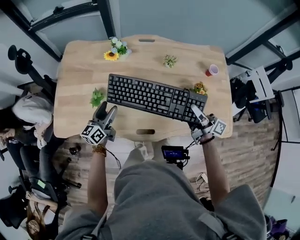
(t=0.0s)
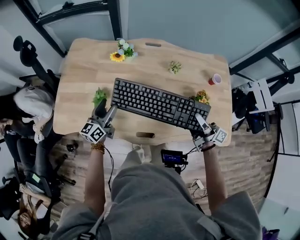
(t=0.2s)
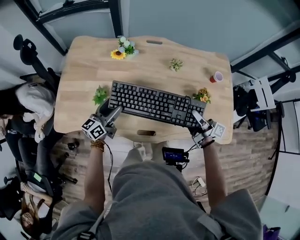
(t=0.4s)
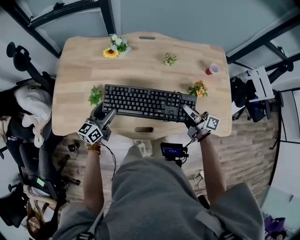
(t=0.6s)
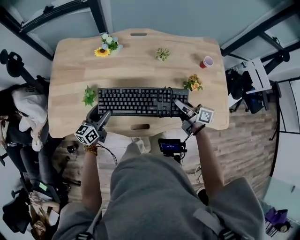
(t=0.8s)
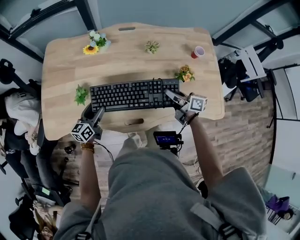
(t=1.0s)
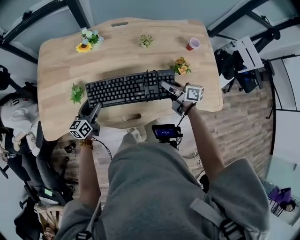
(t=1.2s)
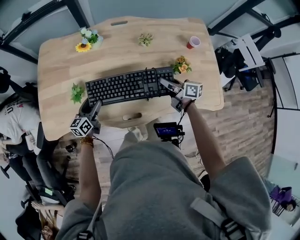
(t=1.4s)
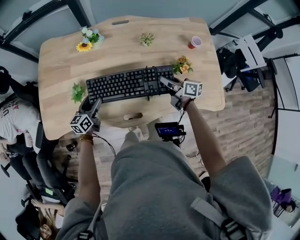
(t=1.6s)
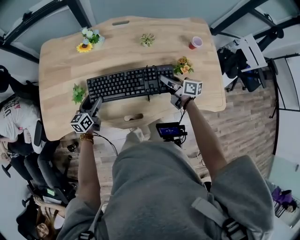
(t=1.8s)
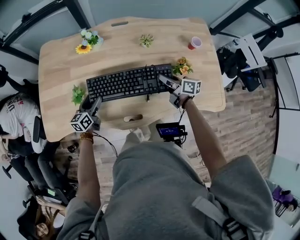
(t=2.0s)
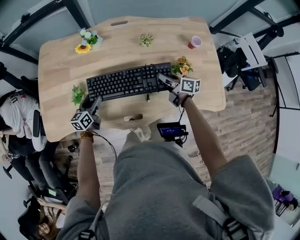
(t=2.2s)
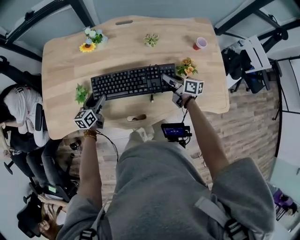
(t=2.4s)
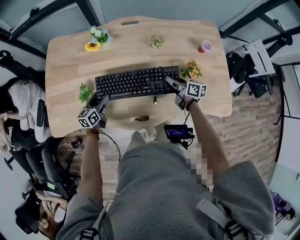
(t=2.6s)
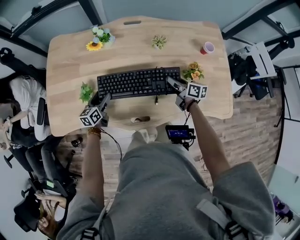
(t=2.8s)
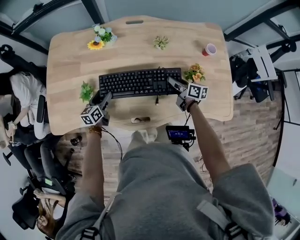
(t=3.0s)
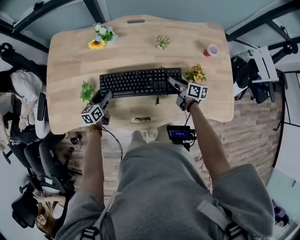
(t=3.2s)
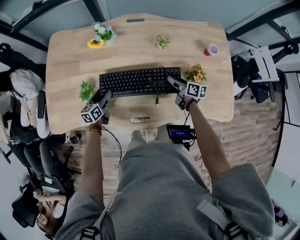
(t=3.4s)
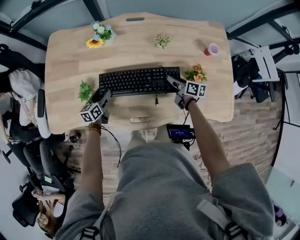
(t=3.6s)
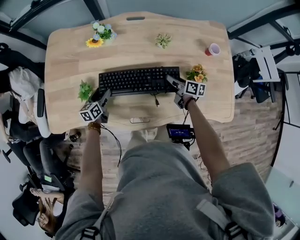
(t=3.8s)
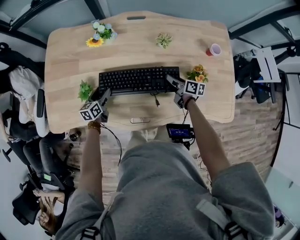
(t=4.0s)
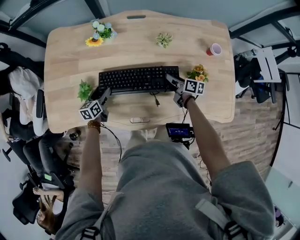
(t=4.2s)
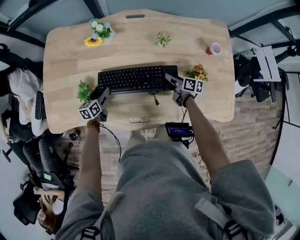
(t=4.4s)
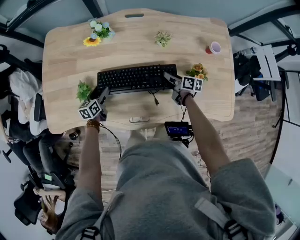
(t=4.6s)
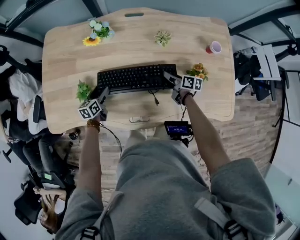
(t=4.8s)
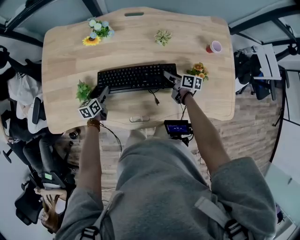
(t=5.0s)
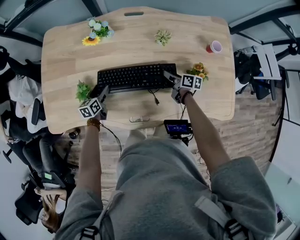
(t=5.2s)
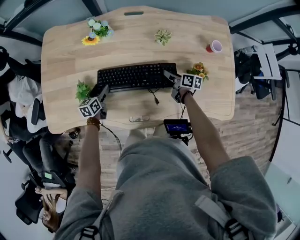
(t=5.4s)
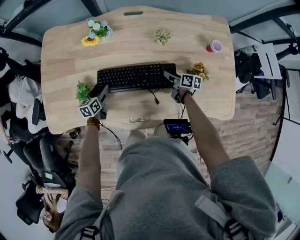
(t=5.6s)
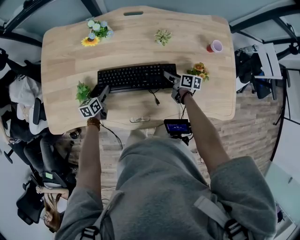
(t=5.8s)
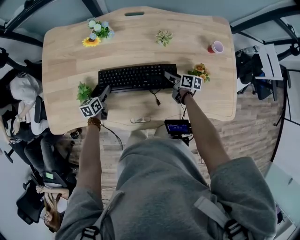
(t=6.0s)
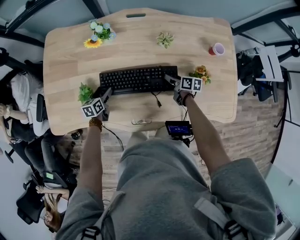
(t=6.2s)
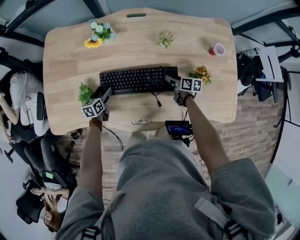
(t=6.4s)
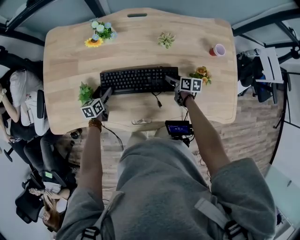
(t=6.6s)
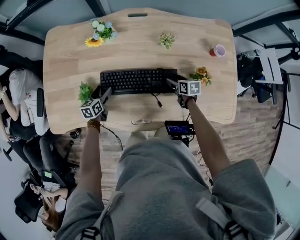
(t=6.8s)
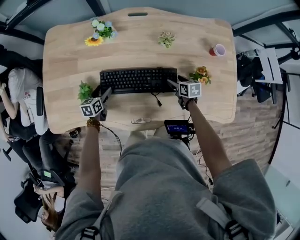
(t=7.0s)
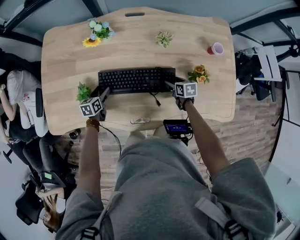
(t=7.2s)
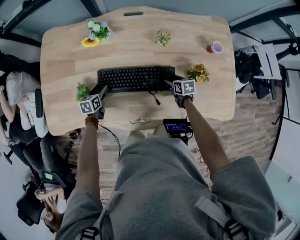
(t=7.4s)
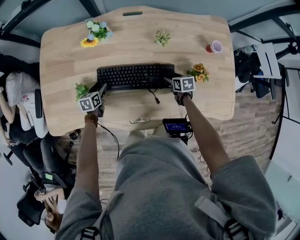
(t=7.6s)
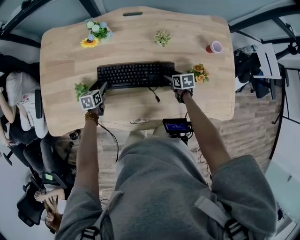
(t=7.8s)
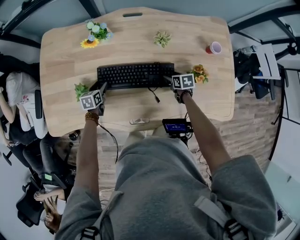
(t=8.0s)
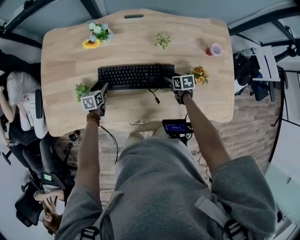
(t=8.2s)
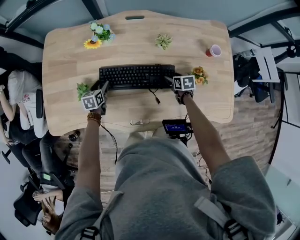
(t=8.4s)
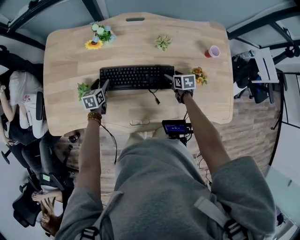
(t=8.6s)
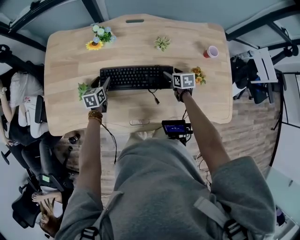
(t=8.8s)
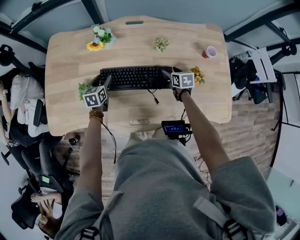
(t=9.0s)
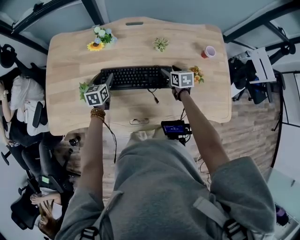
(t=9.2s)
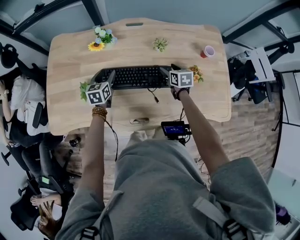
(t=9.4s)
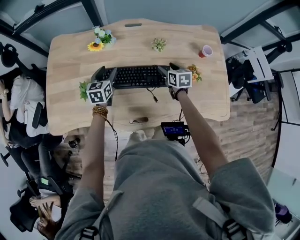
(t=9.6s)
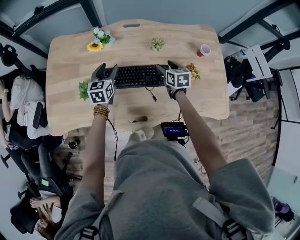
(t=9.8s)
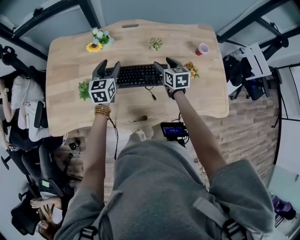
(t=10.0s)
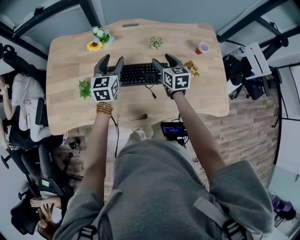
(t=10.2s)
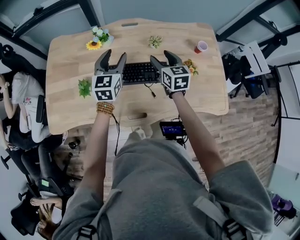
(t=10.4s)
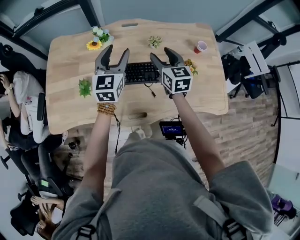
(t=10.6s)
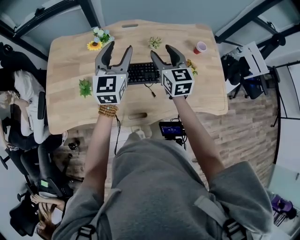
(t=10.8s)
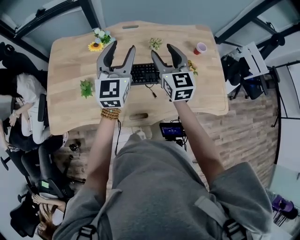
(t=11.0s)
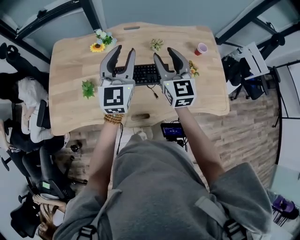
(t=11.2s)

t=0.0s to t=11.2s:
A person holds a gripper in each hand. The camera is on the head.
t=0.0s to t=1.6s: The right gripper moves downward and forward, about 15 cm, and changes its angle by roughly 30 degrees. Meanwhile the left gripper heads downward, covering roughly 10 cm.
t=1.6s to t=3.2s: The right gripper travels downward by roughly 5 cm; the left gripper shifts by some 5 cm.
t=3.2s to t=4.8s: The right gripper heads downward, covering about 5 cm.
t=4.8s to t=6.4s: The grippers move only a little.
t=6.4s to t=8.0s: The right gripper swivels approximately 30 degrees.
t=8.0s to t=9.6s: The right gripper is displaced upward by roughly 15 cm, and swivels some 20 degrees. Meanwhile the left gripper shifts roughly 20 cm upward and to the right, and turns by some 20 degrees.
t=9.6s to t=11.2s: The grippers both shift upward by roughly 25 cm. The right gripper tilts its fingers roughly 40 degrees upward, while the left gripper angles its fingers upward, by some 30 degrees.

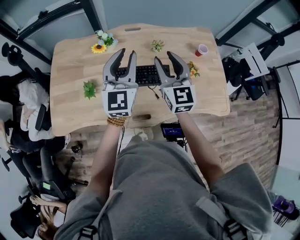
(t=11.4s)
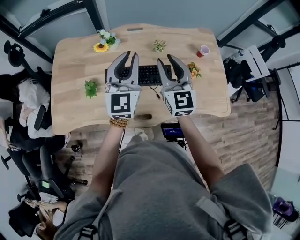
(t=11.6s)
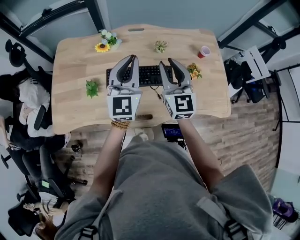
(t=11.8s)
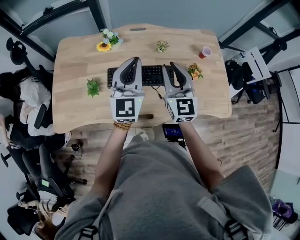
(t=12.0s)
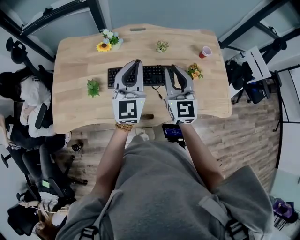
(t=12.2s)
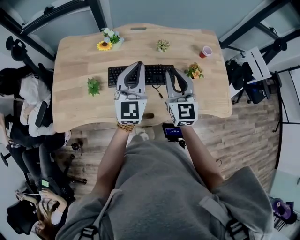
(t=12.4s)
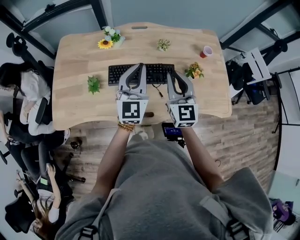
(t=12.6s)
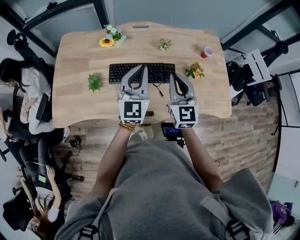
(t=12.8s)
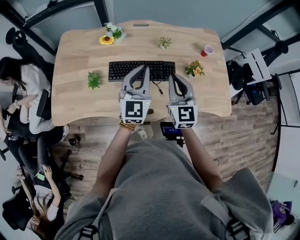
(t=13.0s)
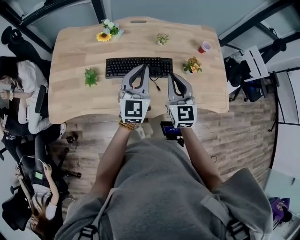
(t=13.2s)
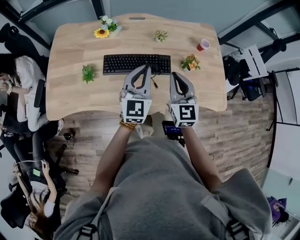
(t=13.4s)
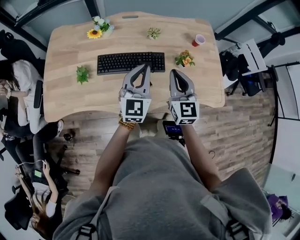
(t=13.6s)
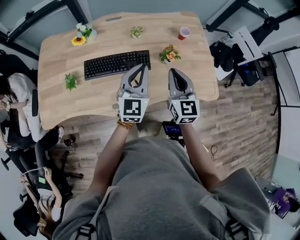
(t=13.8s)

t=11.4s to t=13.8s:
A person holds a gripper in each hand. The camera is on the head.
t=11.4s to t=12.6s: The right gripper moves backward, about 5 cm, and closes its fingers. The left gripper is displaced downward by about 5 cm.
t=12.6s to t=13.8s: Both grippers move to the right, some 15 cm.

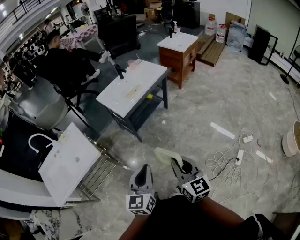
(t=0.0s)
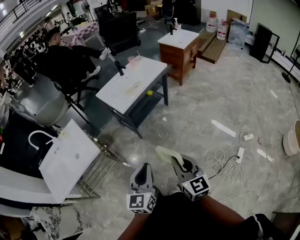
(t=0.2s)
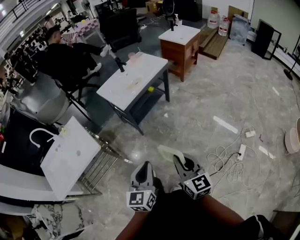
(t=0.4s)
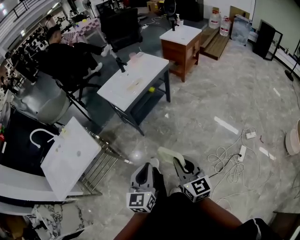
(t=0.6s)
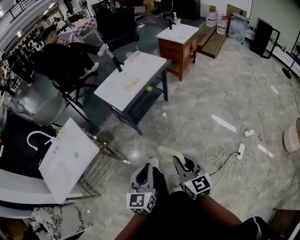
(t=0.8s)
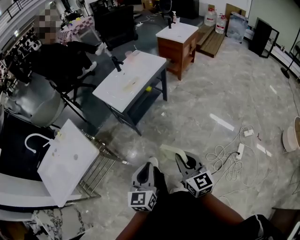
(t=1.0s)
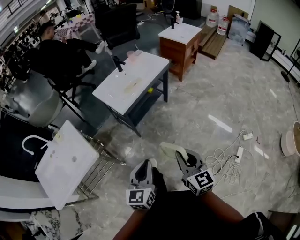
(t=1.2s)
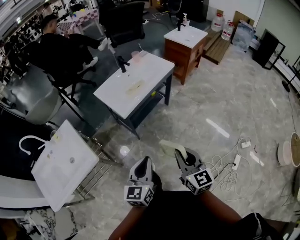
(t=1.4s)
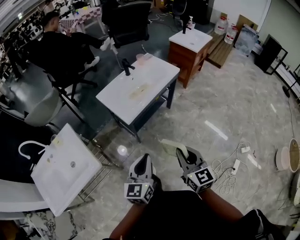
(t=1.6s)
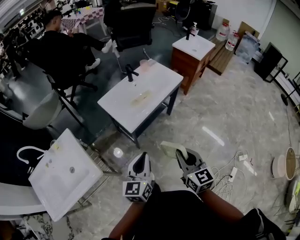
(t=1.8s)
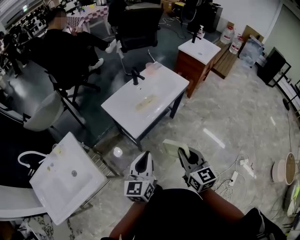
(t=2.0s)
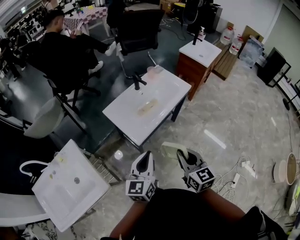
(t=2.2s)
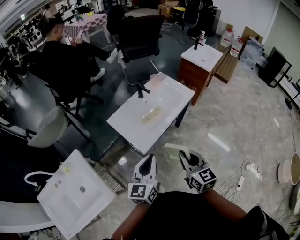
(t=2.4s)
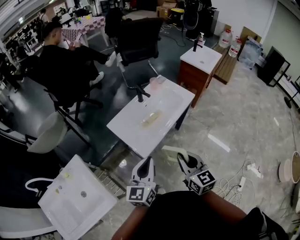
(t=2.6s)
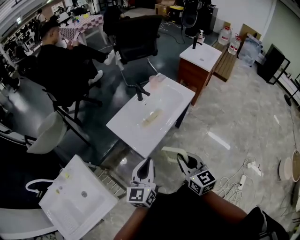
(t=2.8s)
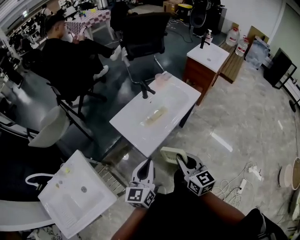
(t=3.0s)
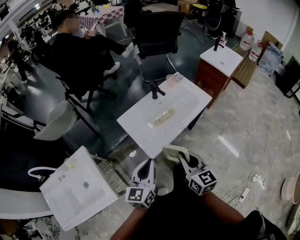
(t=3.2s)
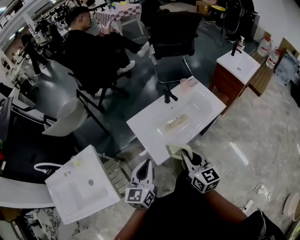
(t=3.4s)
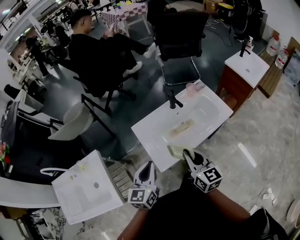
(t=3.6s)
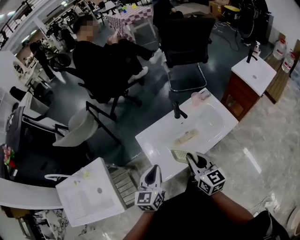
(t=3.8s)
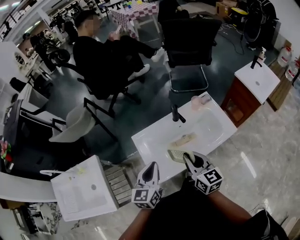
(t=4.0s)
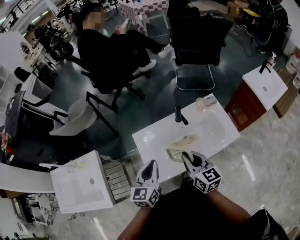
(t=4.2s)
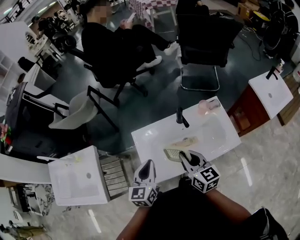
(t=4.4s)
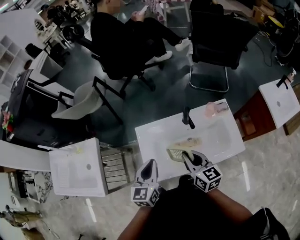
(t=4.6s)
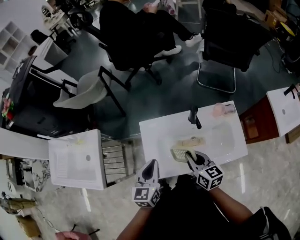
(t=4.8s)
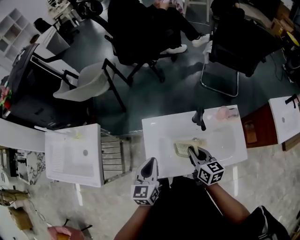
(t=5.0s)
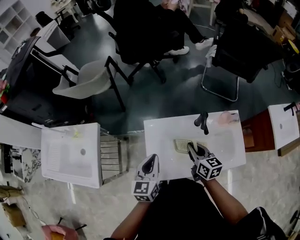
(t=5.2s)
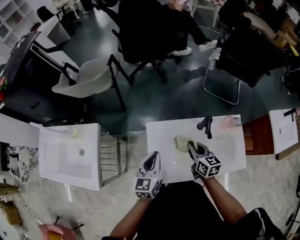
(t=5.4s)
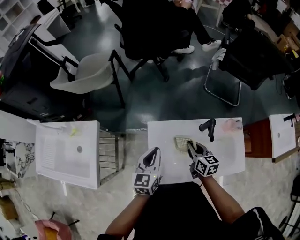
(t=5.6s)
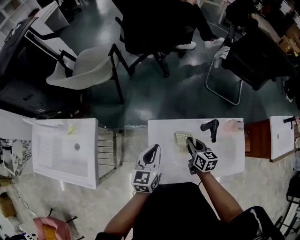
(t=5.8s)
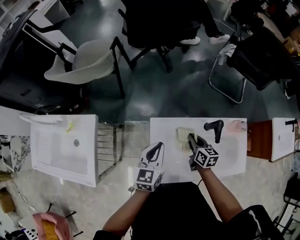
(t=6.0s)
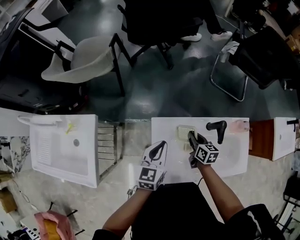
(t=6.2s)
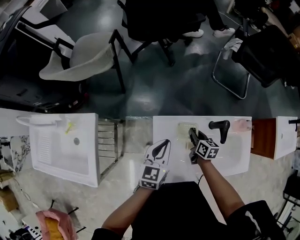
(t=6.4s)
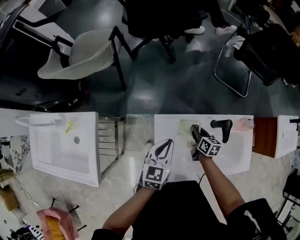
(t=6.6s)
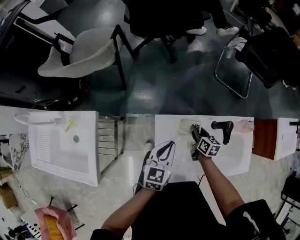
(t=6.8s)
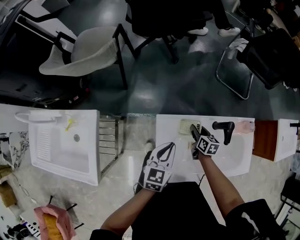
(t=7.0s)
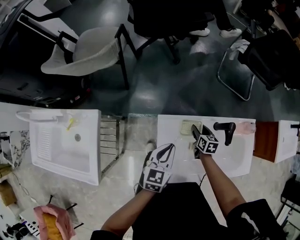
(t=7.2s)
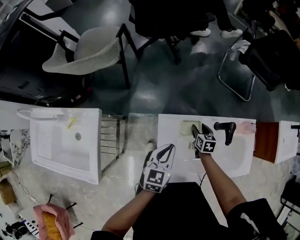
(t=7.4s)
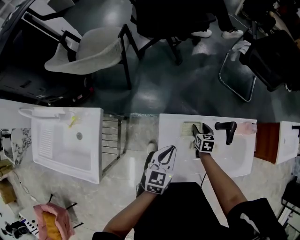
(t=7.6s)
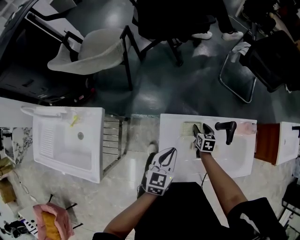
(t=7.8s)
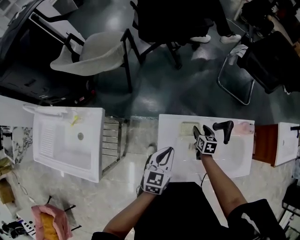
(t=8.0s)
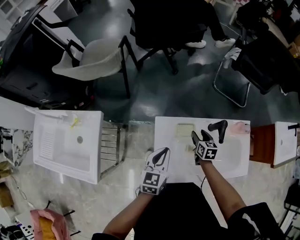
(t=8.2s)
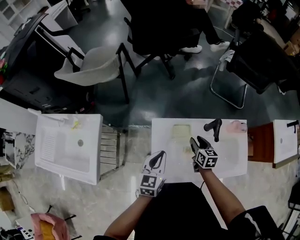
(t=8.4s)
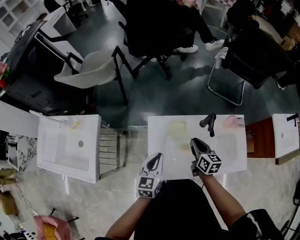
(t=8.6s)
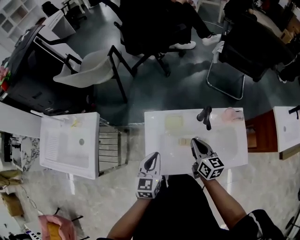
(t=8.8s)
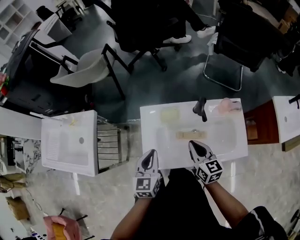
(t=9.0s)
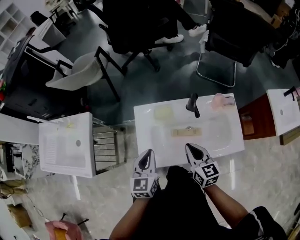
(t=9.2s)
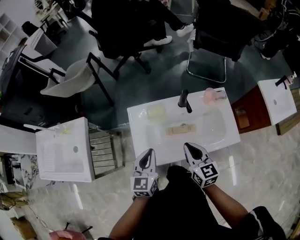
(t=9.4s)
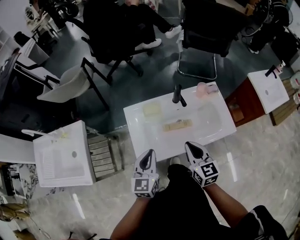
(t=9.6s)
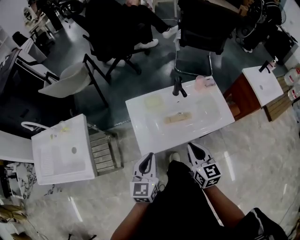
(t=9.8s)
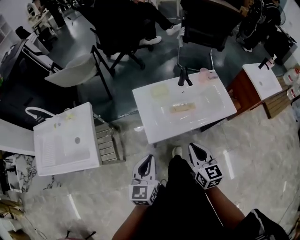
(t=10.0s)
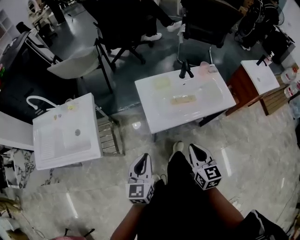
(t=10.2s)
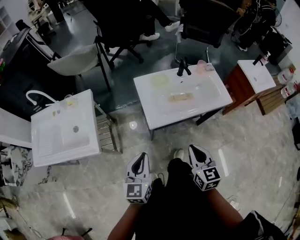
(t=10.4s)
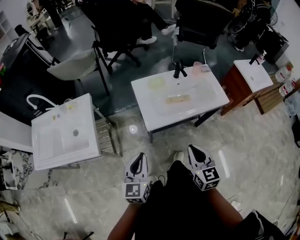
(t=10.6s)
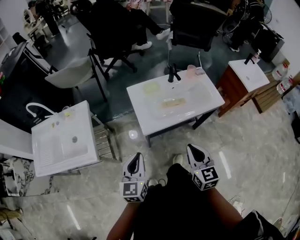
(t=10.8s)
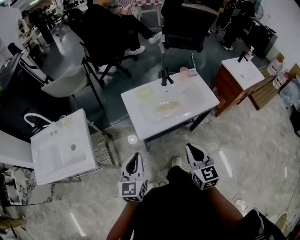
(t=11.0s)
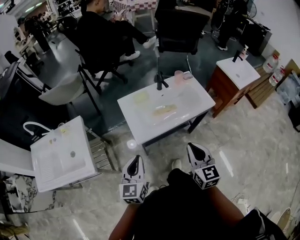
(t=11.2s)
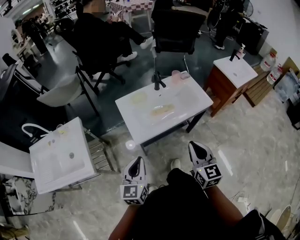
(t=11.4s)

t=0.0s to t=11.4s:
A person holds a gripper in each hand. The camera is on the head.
t=0.0s to t=1.4s: The grippers both shift forward by approximately 15 cm.
t=1.4s to t=2.8s: Both grippers move forward and to the left, about 30 cm.
t=2.8s to t=4.2s: The left gripper ends up approximately 25 cm from where it was, and changes its angle by approximately 30 degrees; the right gripper changes place by about 30 cm, and rotates roughly 30 degrees.
t=4.2s to t=5.6s: The left gripper heads forward, to the left and downward, covering approximately 15 cm. Meanwhile the right gripper is displaced forward and downward by about 25 cm, and swivels approximately 20 degrees.
t=5.6s to t=7.2s: The right gripper moves downward and forward, some 20 cm, and opens its fingers. Meanwhile the left gripper moves downward, some 5 cm.
t=7.2s to t=8.6s: The left gripper moves backward, roughly 10 cm. Meanwhile the right gripper shifts about 20 cm upward and backward, and closes.
t=8.6s to t=10.0s: The grippers both shift backward by roughly 30 cm. The right gripper turns by some 20 degrees.
t=10.0s to t=11.4s: The right gripper moves backward, upward and to the right, about 15 cm. The left gripper goes about 5 cm backward.
